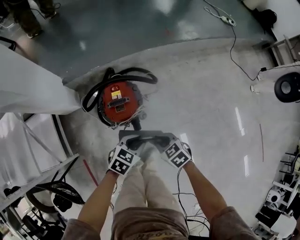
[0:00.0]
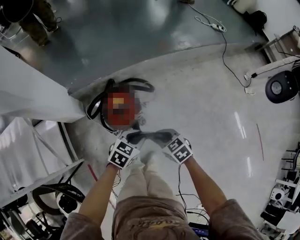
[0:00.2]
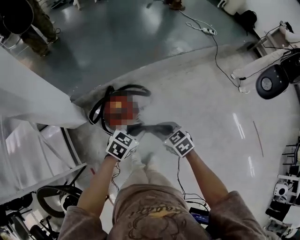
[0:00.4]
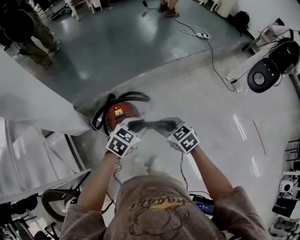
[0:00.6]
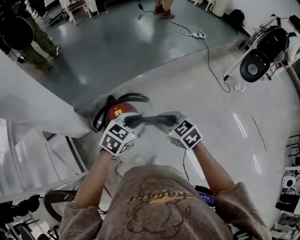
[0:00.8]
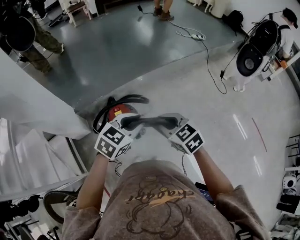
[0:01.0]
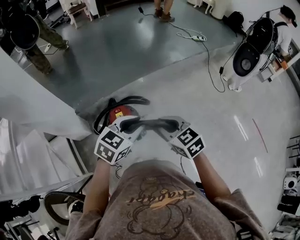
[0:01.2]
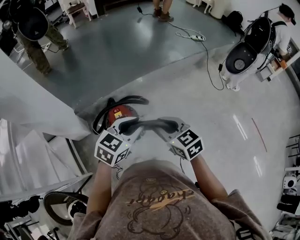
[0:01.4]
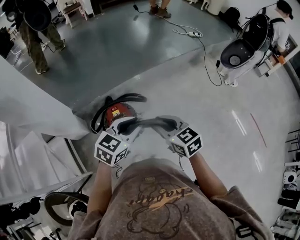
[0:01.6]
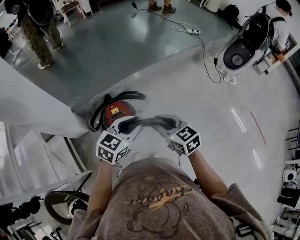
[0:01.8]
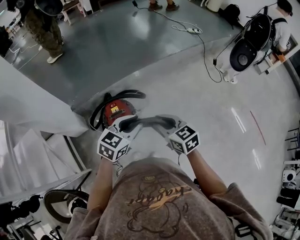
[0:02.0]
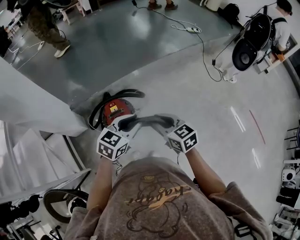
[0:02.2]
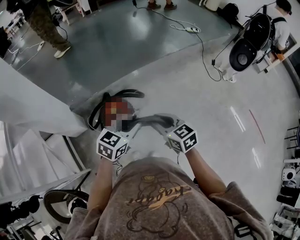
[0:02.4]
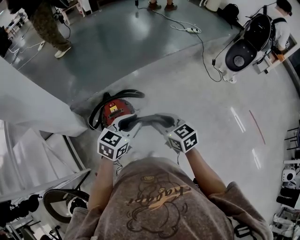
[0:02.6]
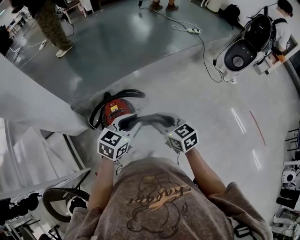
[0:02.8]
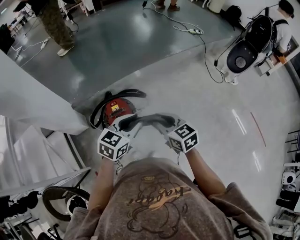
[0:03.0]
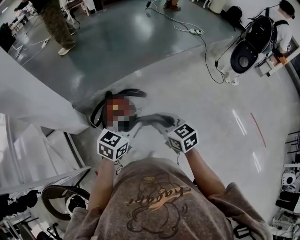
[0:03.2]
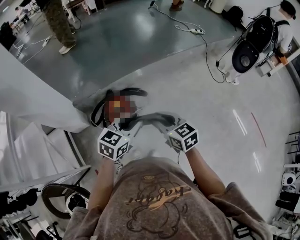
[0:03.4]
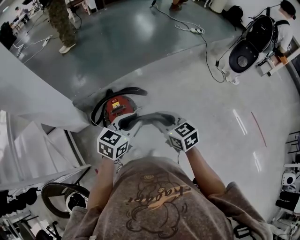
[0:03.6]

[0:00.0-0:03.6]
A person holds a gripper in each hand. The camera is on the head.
0:00.0 to 0:01.8: The two grippers go some 30 cm upward. The right gripper changes its angle by roughly 40 degrees. Meanwhile the left gripper turns by roughly 30 degrees.
0:01.8 to 0:03.6: The grippers make only small movements.

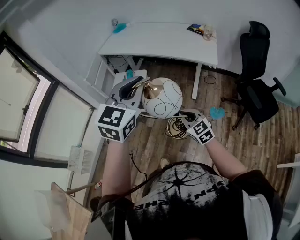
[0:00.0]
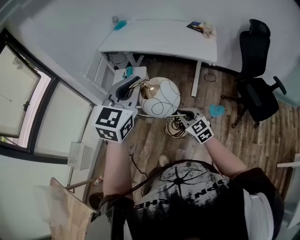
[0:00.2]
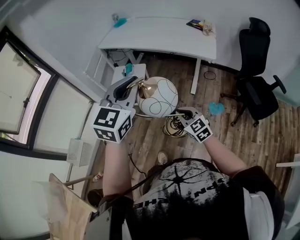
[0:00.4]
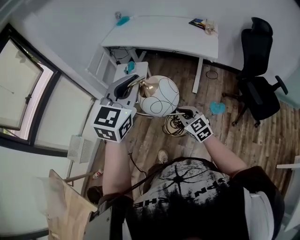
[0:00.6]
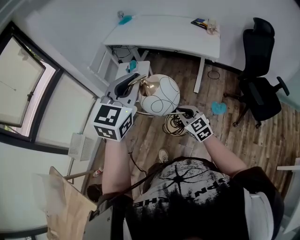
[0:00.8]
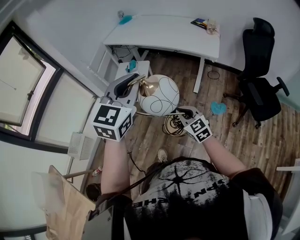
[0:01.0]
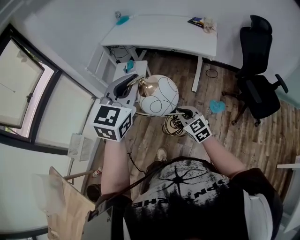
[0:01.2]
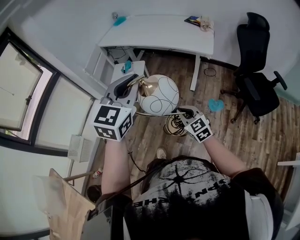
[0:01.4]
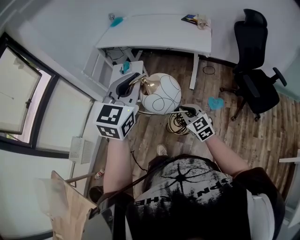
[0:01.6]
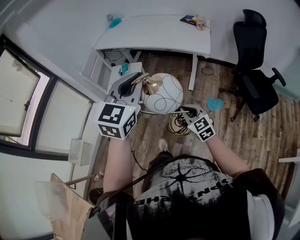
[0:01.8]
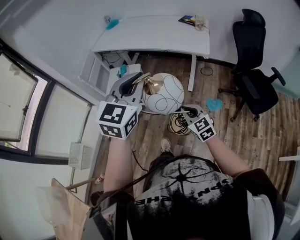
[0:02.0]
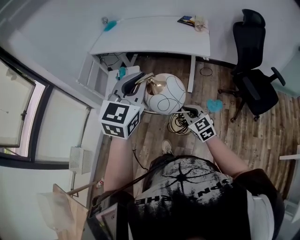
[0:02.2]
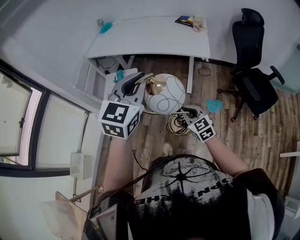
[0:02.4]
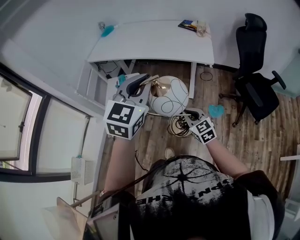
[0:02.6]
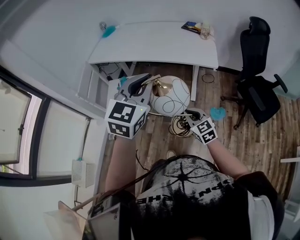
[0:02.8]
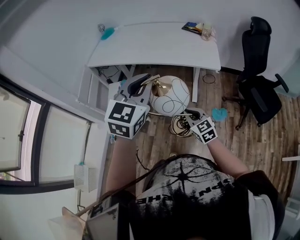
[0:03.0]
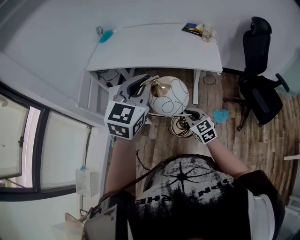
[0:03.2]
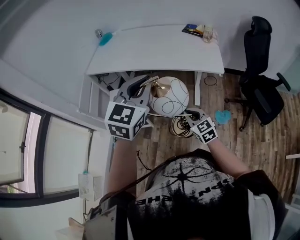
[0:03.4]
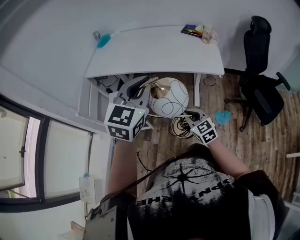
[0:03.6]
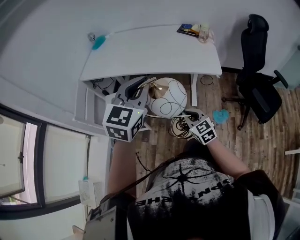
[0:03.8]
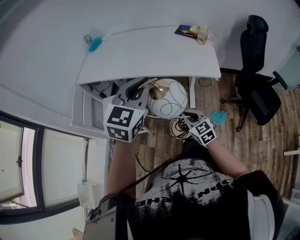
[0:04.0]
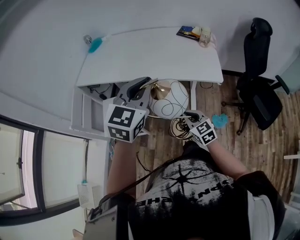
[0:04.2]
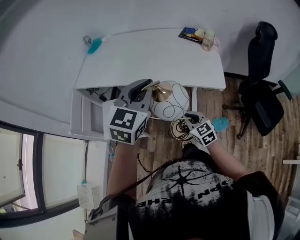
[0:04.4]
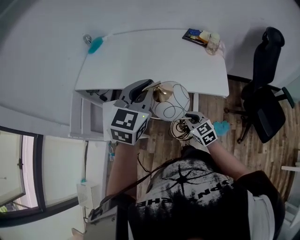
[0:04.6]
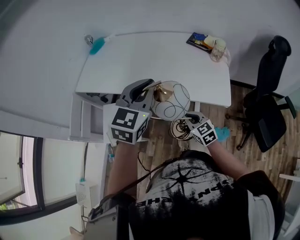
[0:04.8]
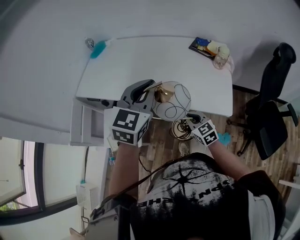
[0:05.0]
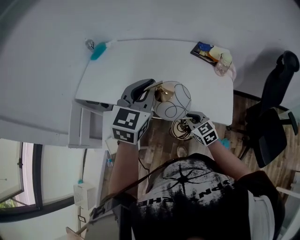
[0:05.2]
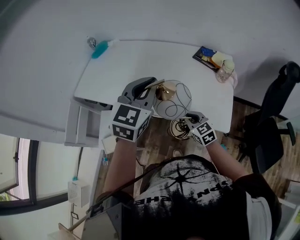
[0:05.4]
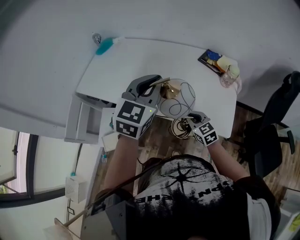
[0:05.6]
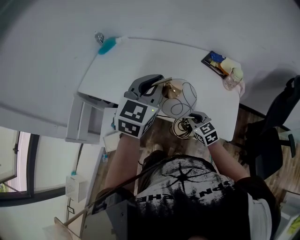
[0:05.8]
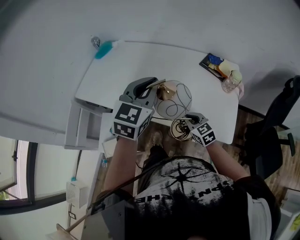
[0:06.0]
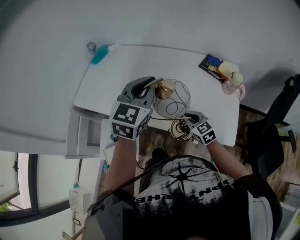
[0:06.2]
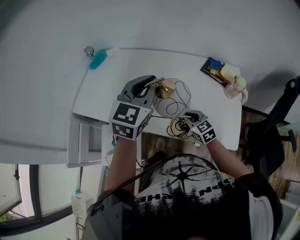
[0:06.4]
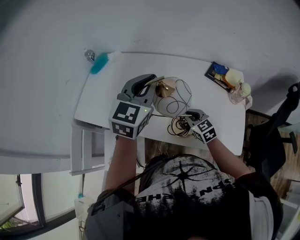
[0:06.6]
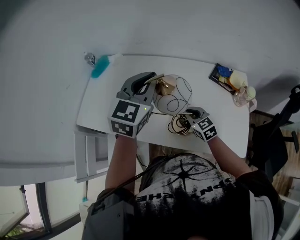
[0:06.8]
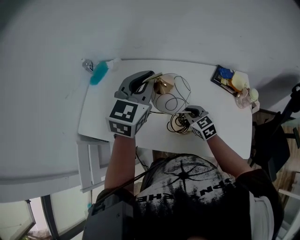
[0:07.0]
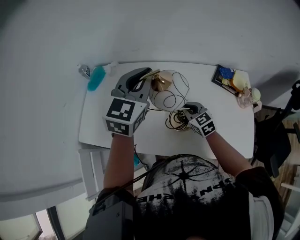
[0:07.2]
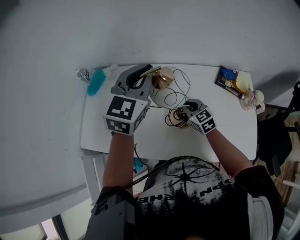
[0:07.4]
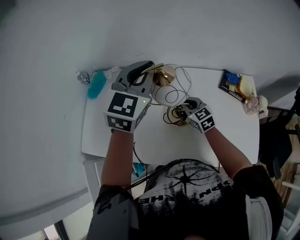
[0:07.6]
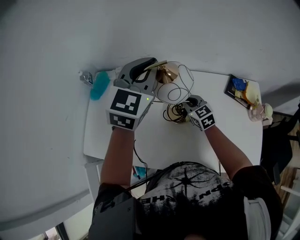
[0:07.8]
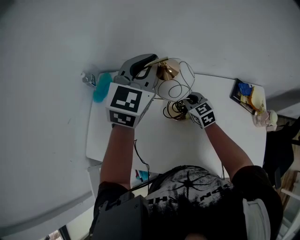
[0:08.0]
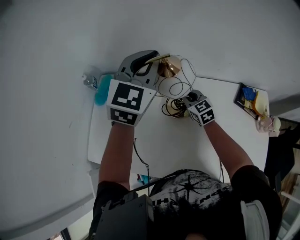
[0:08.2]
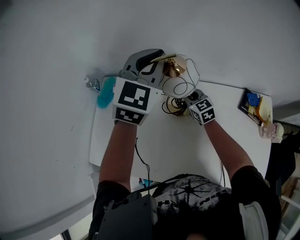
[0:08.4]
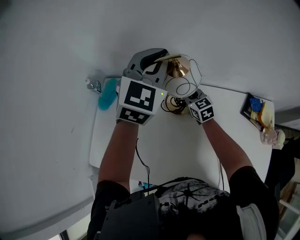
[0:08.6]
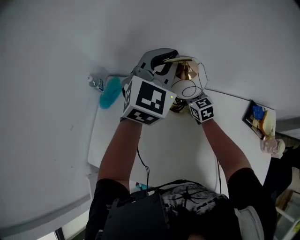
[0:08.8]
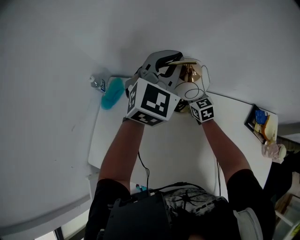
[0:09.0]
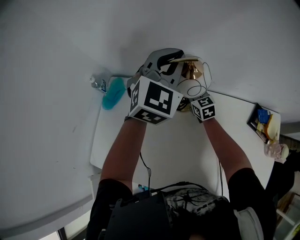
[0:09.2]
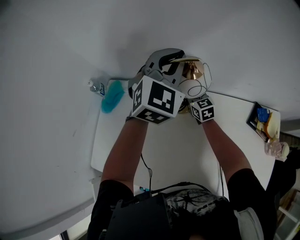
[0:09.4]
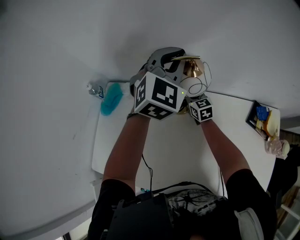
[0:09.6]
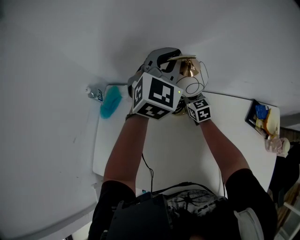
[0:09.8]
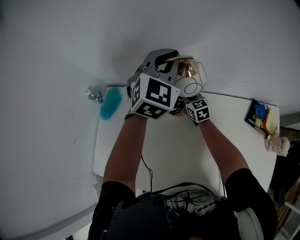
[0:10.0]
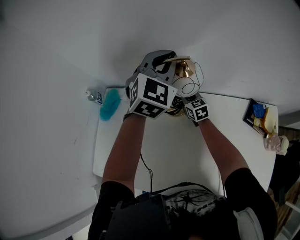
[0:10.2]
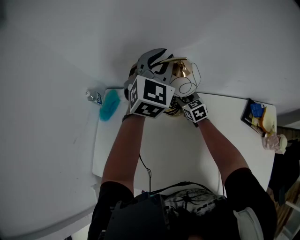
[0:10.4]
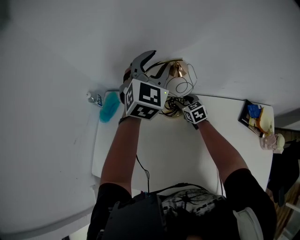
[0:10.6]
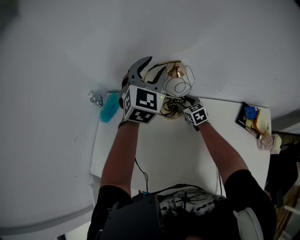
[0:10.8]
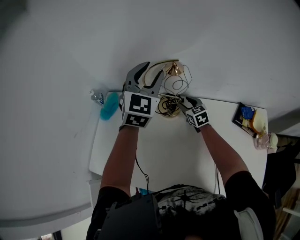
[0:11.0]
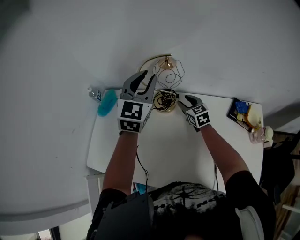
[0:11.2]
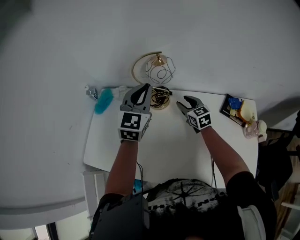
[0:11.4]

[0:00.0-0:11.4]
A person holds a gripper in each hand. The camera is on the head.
0:00.0 to 0:01.4: The two grippers go about 5 cm backward.
0:01.4 to 0:02.8: The grippers both shift forward by roughly 20 cm.
0:02.8 to 0:04.2: Both grippers move forward, approximately 20 cm.
0:04.2 to 0:05.6: The grippers both shift forward by about 30 cm.
0:05.6 to 0:07.2: Both grippers travel together forward, about 30 cm.
0:07.2 to 0:08.6: The two grippers go approximately 25 cm forward.
0:08.6 to 0:10.0: Both grippers move forward, approximately 5 cm.
0:10.0 to 0:11.4: The left gripper shifts approximately 15 cm backward, changes its angle by approximately 20 degrees, and opens, then closes once more; the right gripper is displaced backward, upward and to the right by about 20 cm, and opens.

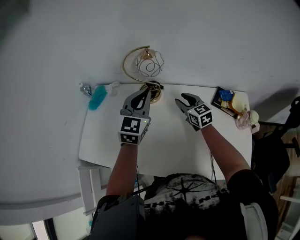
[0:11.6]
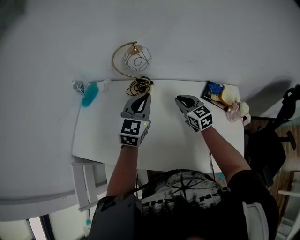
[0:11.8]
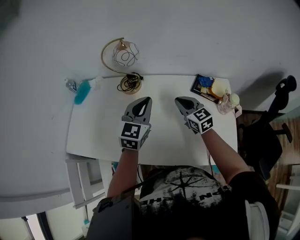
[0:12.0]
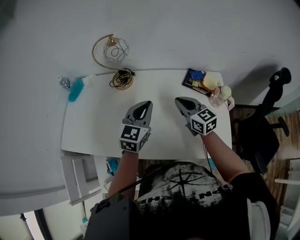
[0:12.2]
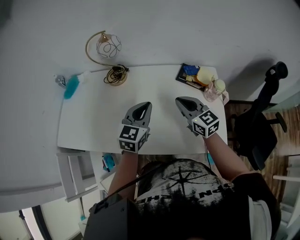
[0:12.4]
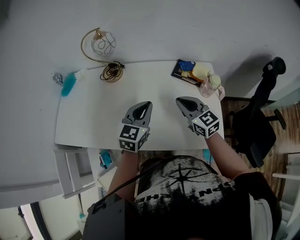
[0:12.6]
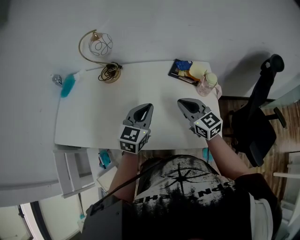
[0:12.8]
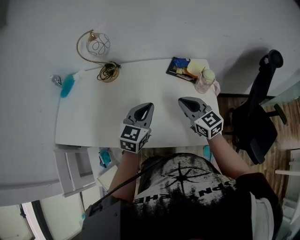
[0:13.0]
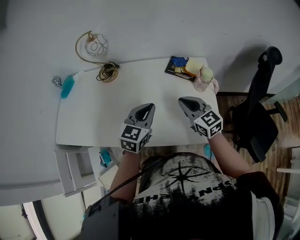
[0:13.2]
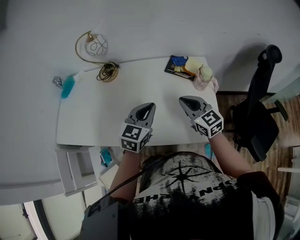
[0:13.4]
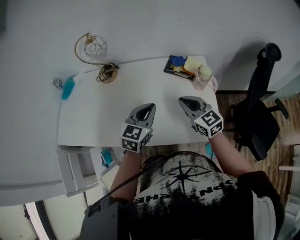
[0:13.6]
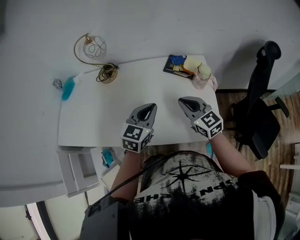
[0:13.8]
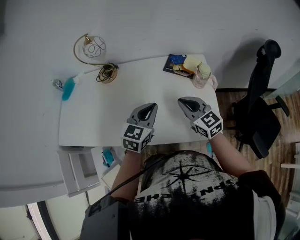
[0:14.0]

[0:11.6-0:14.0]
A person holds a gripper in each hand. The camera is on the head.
0:11.6 to 0:12.8: The right gripper shifts approximately 30 cm backward and to the right, and closes its fingers. The left gripper goes some 30 cm backward, to the right and downward.
0:12.8 to 0:14.0: The left gripper moves about 5 cm.

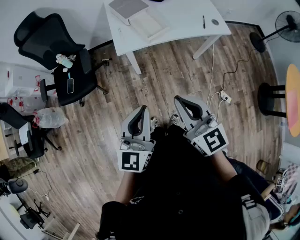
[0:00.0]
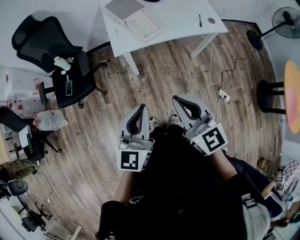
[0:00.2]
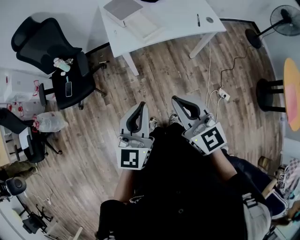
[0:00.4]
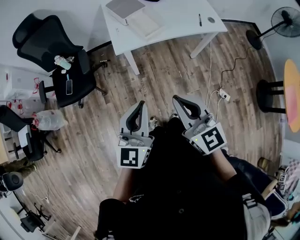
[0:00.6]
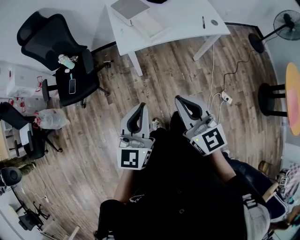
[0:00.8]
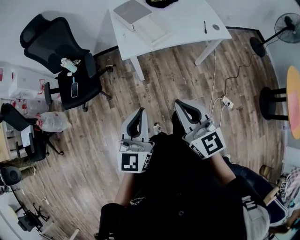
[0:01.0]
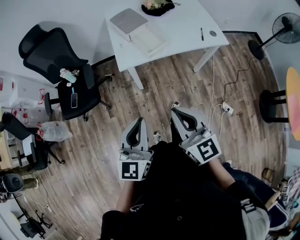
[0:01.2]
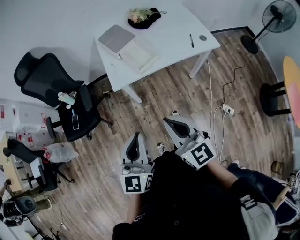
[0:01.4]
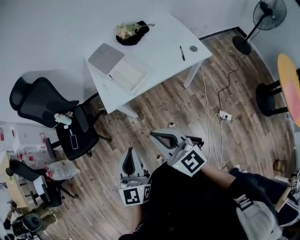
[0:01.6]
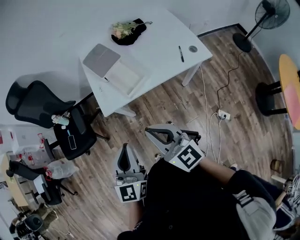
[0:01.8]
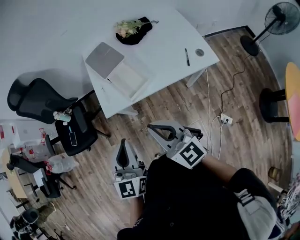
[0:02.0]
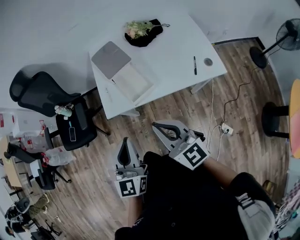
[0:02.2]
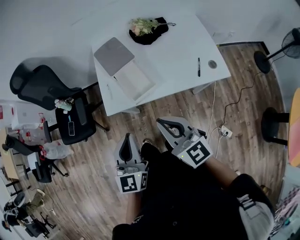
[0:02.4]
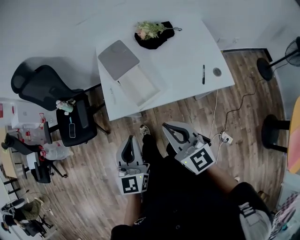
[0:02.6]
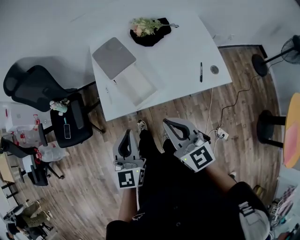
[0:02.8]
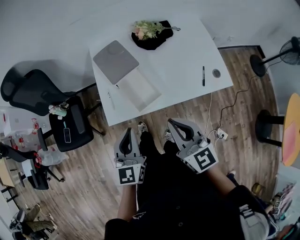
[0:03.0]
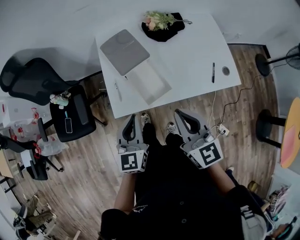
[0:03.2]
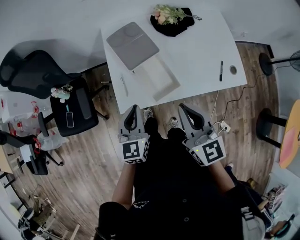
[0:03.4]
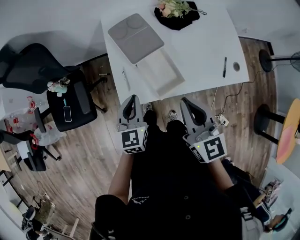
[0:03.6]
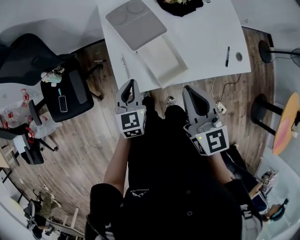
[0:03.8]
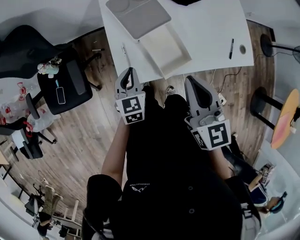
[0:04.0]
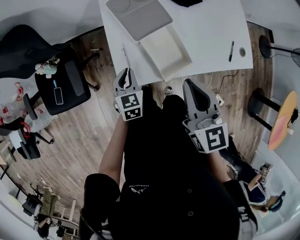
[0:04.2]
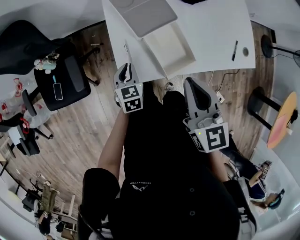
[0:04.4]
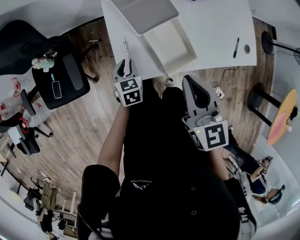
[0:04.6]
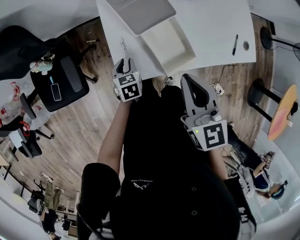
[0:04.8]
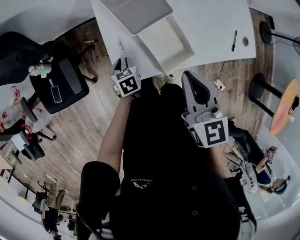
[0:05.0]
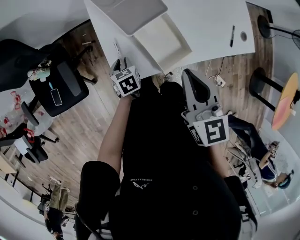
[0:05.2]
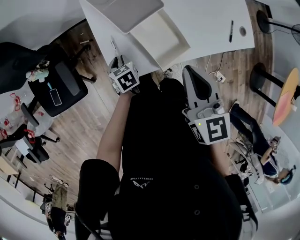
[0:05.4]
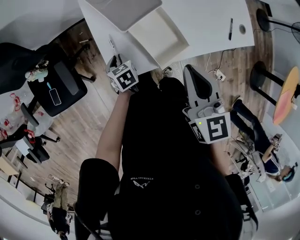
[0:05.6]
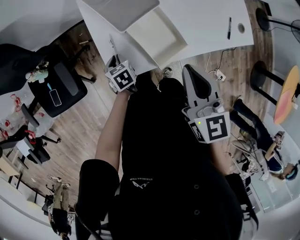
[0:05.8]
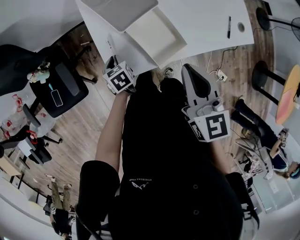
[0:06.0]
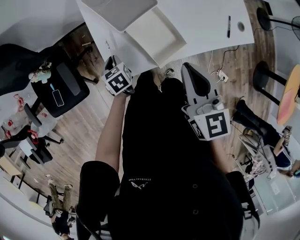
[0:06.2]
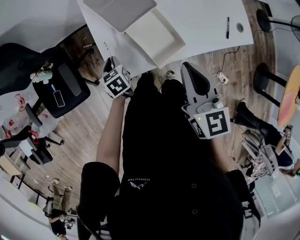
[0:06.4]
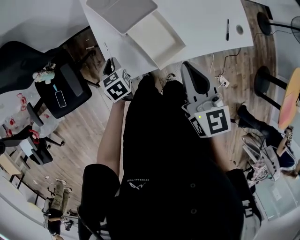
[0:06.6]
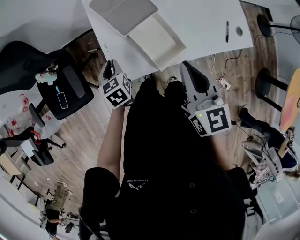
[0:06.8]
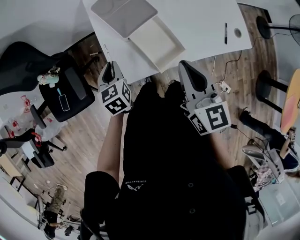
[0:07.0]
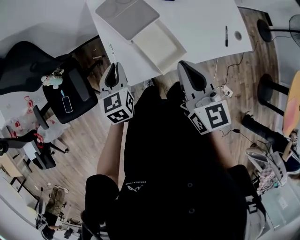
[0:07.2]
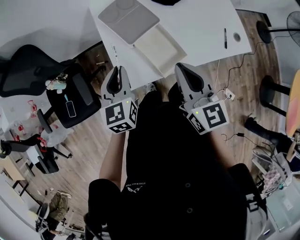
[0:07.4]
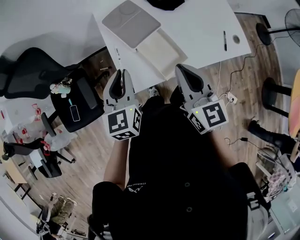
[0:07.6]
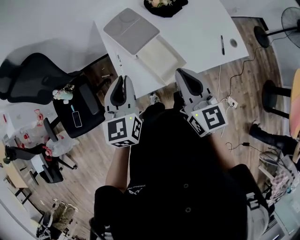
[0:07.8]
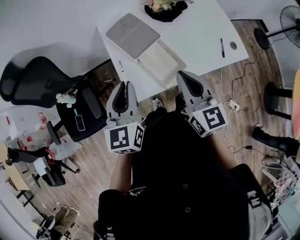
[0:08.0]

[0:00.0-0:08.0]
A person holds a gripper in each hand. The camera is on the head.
0:00.0 to 0:01.6: Both grippers travel together forward, roughly 10 cm.
0:01.6 to 0:03.2: The grippers both shift forward by about 30 cm.
0:03.2 to 0:04.8: The right gripper heads to the left, forward and downward, covering approximately 15 cm. The left gripper moves downward, forward and to the left, roughly 35 cm, and angles its fingers downward, by about 40 degrees.
0:04.8 to 0:06.4: The right gripper heads to the right, covering some 5 cm.
0:06.4 to 0:08.0: The left gripper travels upward by some 30 cm, and tilts its fingers some 40 degrees upward; the right gripper moves upward, roughly 5 cm.
